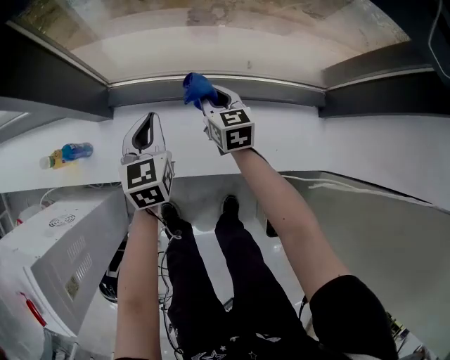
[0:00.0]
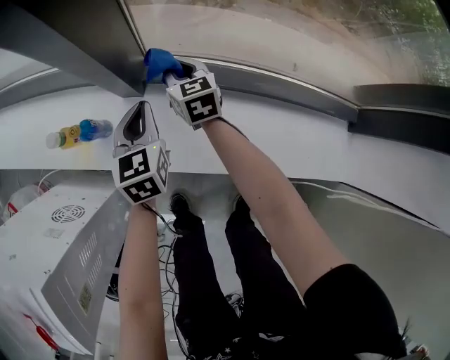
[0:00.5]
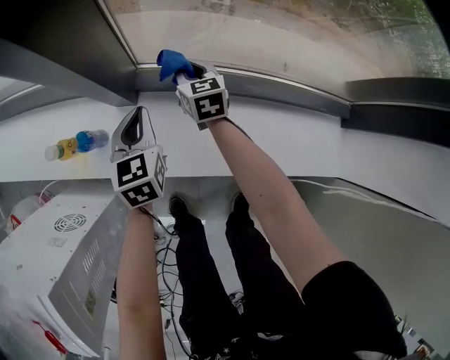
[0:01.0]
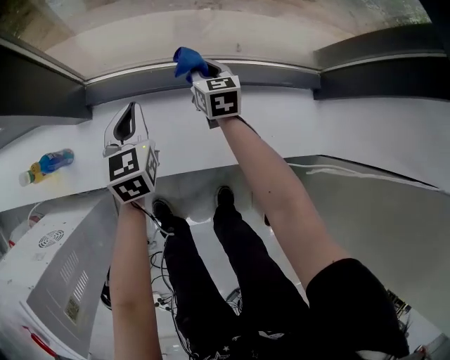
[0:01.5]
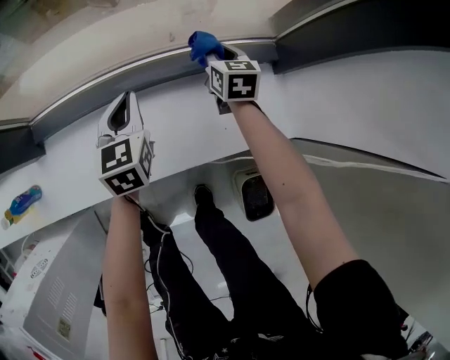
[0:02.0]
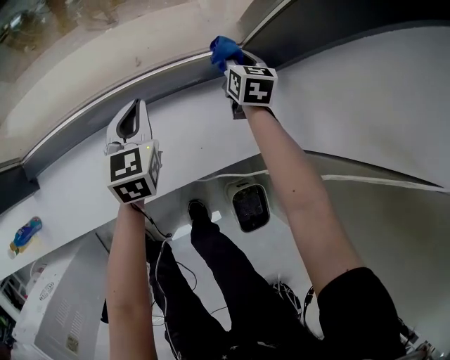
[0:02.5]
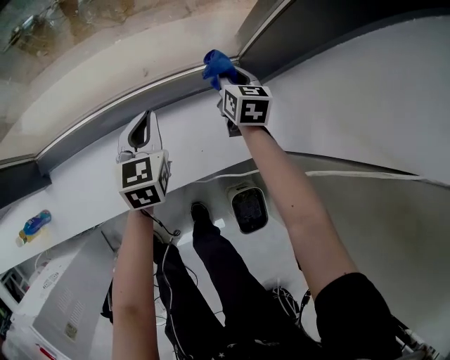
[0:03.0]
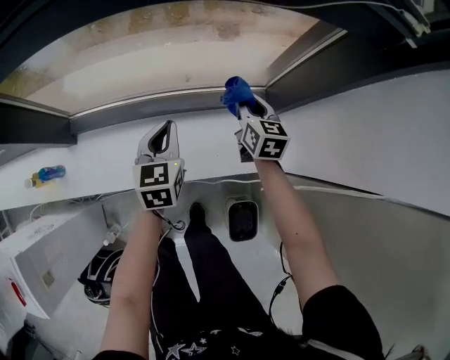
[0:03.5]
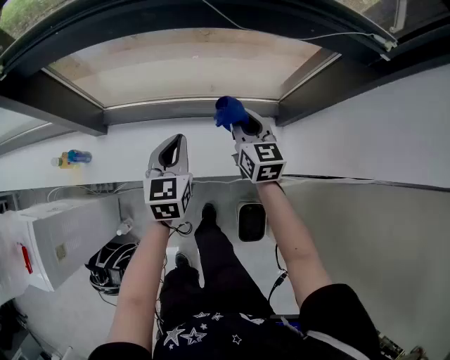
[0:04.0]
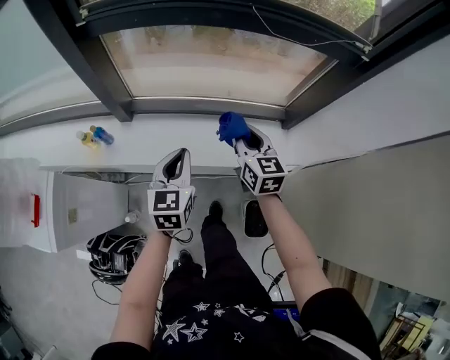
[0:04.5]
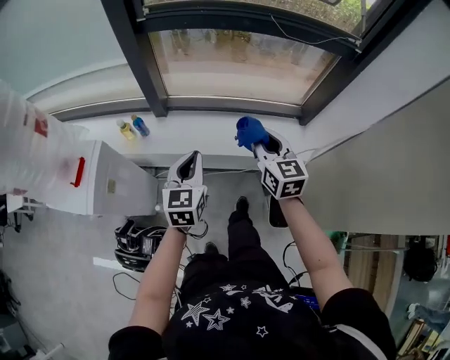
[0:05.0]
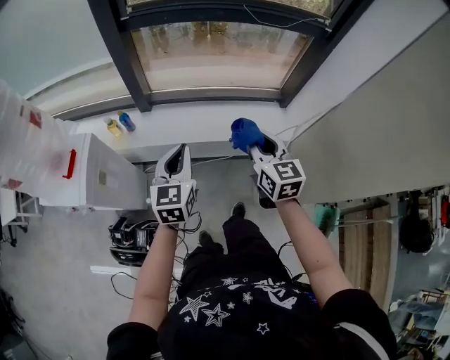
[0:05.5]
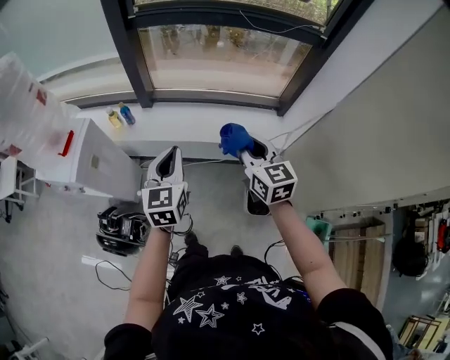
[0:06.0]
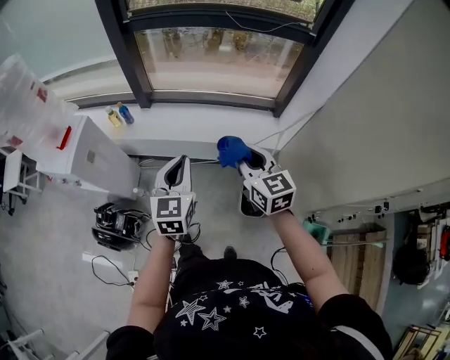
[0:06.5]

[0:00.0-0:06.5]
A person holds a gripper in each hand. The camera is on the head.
0:00.0 to 0:02.0: The right gripper changes place by about 30 cm, and turns by roughly 20 degrees. The left gripper shifts by approximately 20 cm.
0:02.0 to 0:04.5: Both grippers move upward and backward, some 40 cm. The right gripper changes its angle by some 20 degrees.
0:04.5 to 0:06.5: Both grippers move backward, some 30 cm.

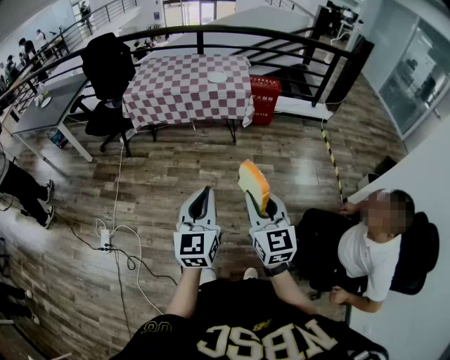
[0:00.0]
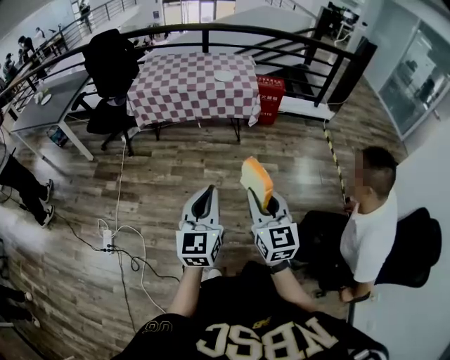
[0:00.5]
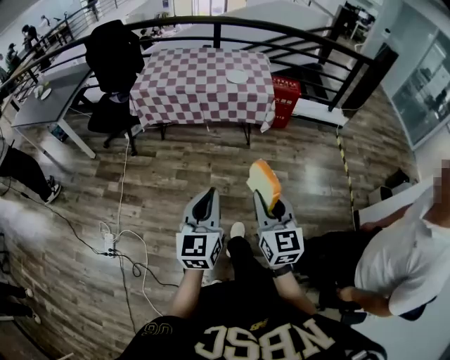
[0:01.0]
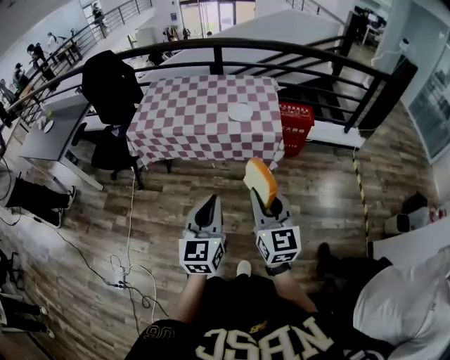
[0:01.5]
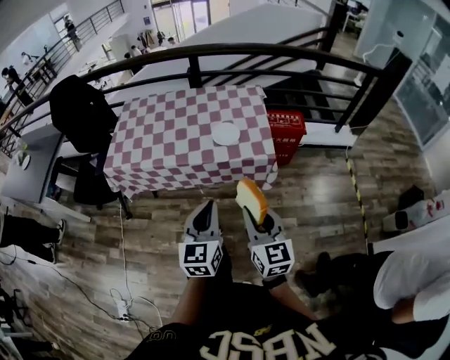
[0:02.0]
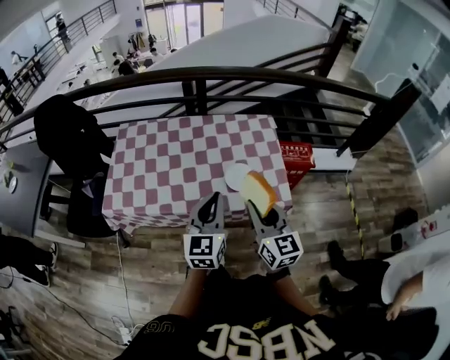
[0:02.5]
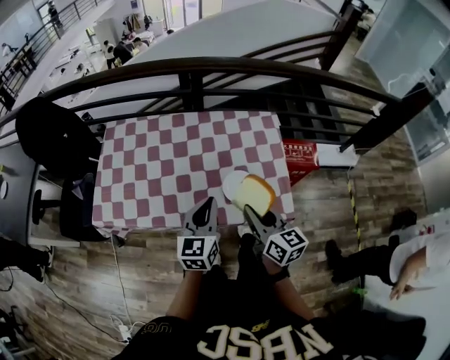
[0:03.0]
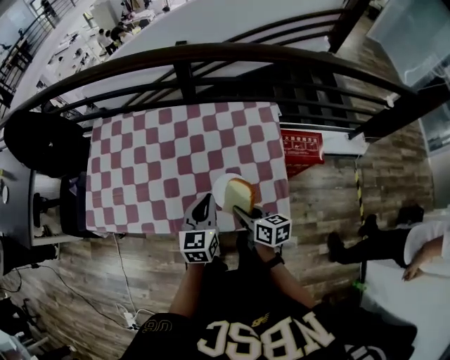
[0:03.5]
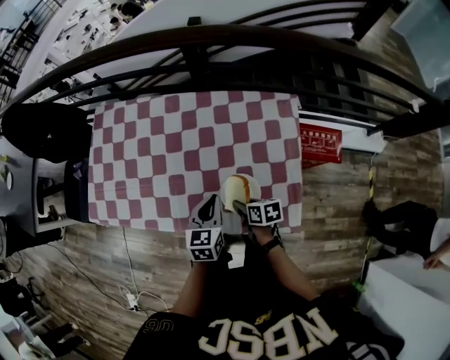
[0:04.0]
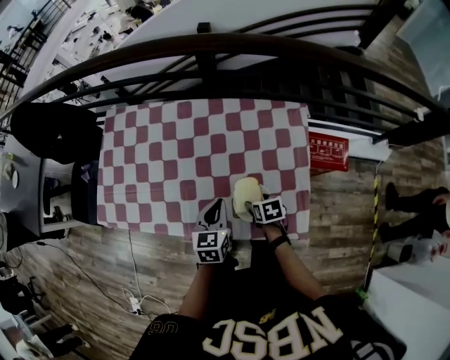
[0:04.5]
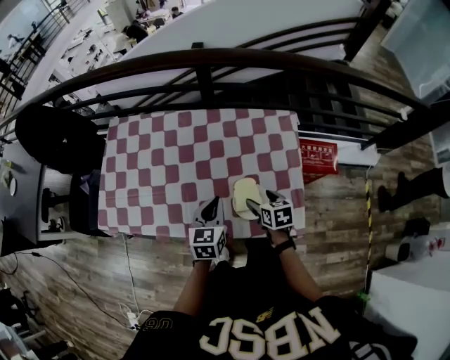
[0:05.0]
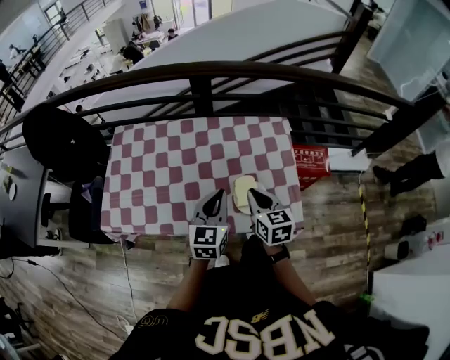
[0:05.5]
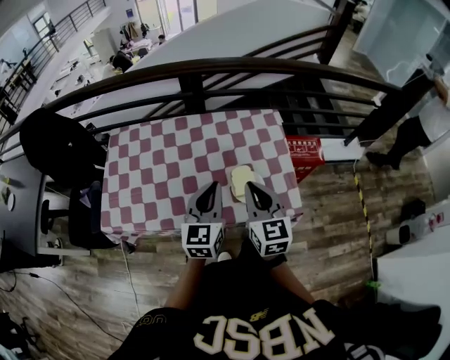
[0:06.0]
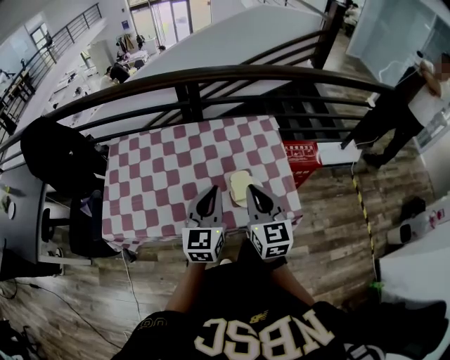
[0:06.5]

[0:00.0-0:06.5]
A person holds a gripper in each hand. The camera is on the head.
0:00.0 to 0:02.0: The two grippers travel together, forward, approximately 60 cm.
0:02.0 to 0:04.5: The pair of grippers is taken about 40 cm. The left gripper changes its angle by about 30 degrees, while the right gripper tilts its fingers some 50 degrees downward, and opens up.
0:04.5 to 0:06.5: The right gripper heads upward, covering roughly 35 cm, tilts its fingers about 50 degrees upward, and closes up, while the left gripper goes approximately 20 cm upward, and rotates roughly 30 degrees.

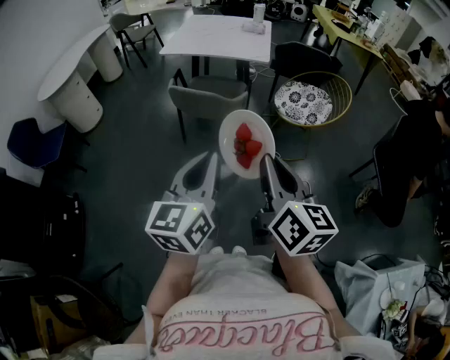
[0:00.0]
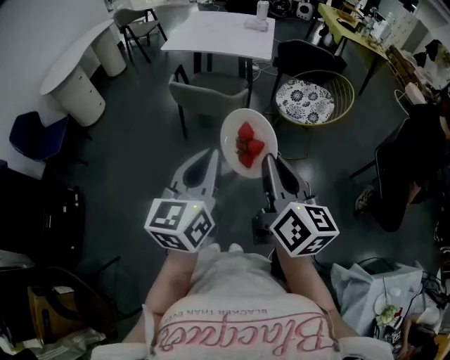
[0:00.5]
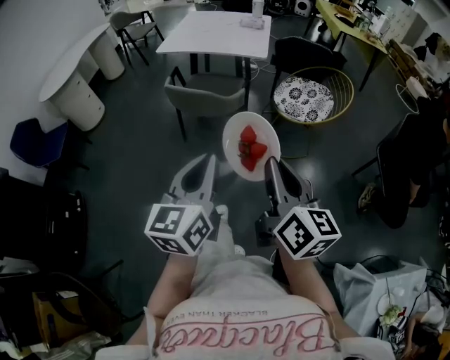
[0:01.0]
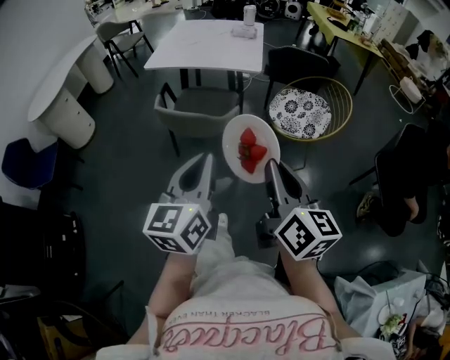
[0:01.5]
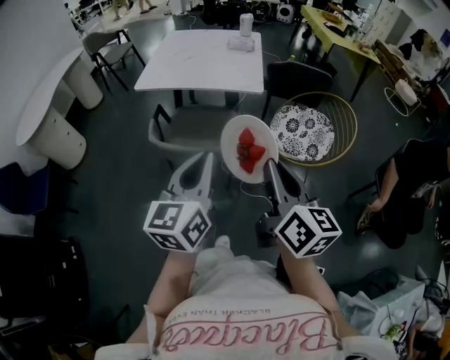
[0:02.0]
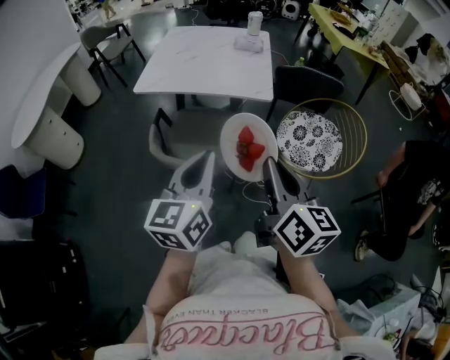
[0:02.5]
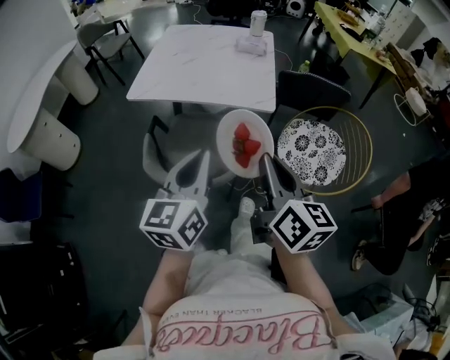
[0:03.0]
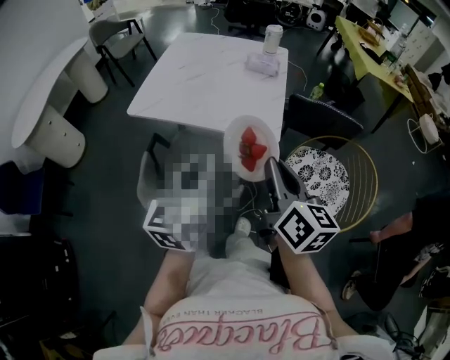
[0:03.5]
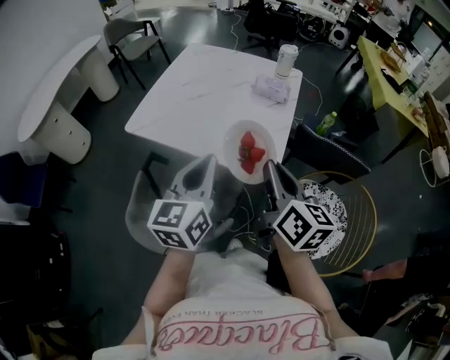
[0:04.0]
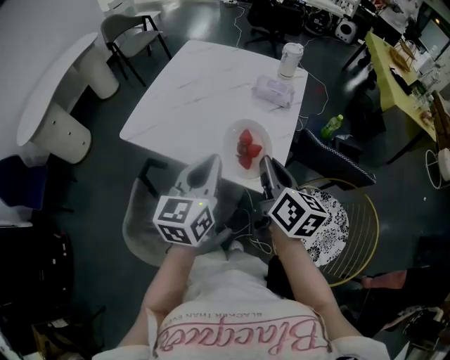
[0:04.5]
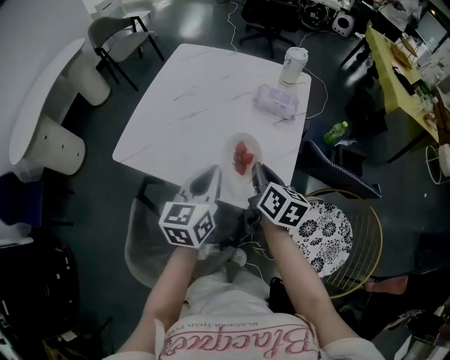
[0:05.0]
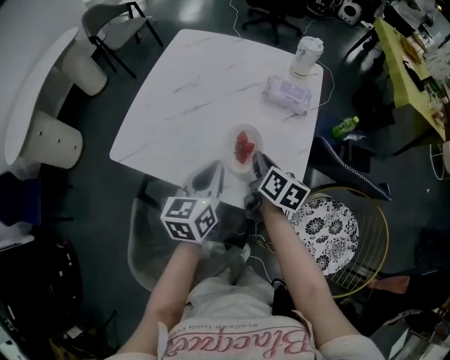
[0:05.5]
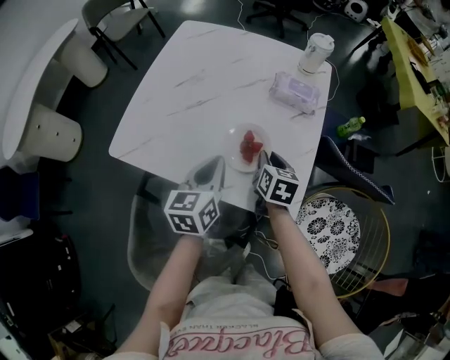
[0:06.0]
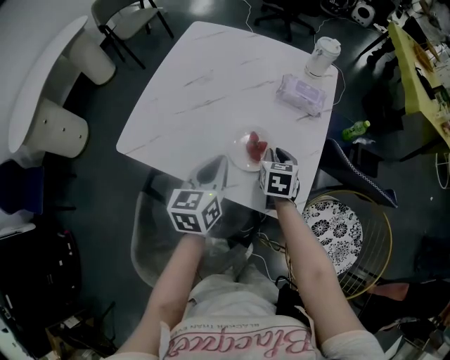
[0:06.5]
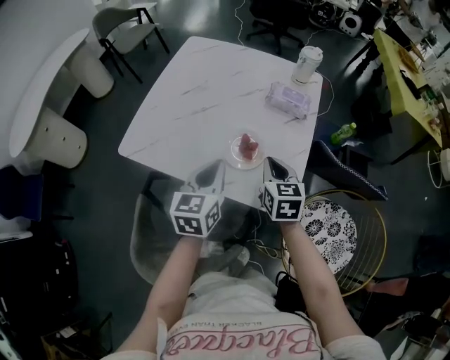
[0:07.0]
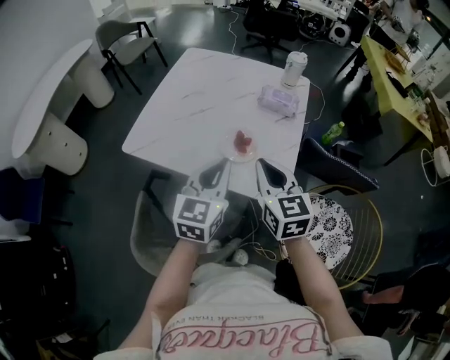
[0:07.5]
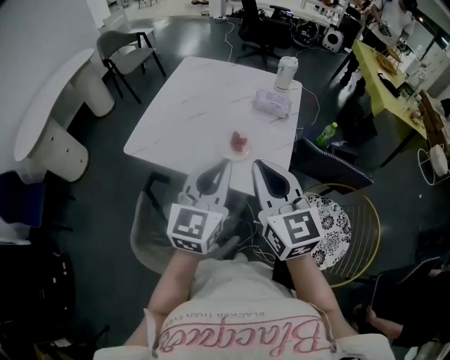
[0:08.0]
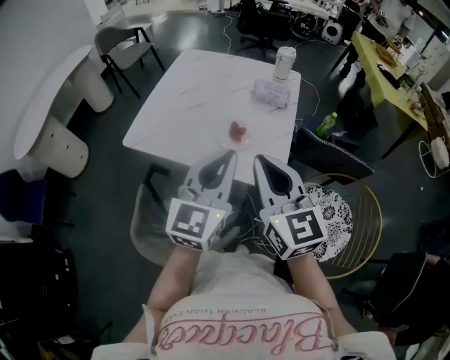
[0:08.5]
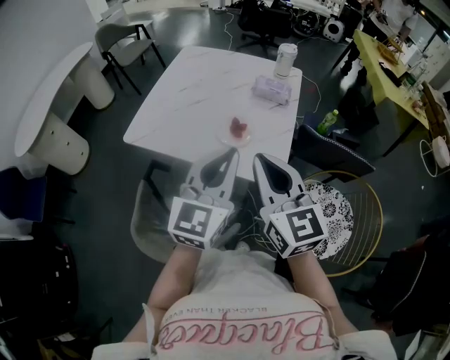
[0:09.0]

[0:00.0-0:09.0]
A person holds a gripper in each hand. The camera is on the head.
0:00.0 to 0:02.0: Both grippers move forward, roughly 30 cm.
0:02.0 to 0:04.5: The pair of grippers is taken forward, some 60 cm.
0:04.5 to 0:07.0: The left gripper goes about 15 cm forward, downward and to the left. Meanwhile the right gripper goes some 20 cm downward and forward, and changes its angle by some 40 degrees.
0:07.0 to 0:09.0: The left gripper goes approximately 25 cm upward, backward and to the right, and turns by some 30 degrees. The right gripper travels upward and backward by roughly 30 cm, and changes its angle by about 30 degrees.

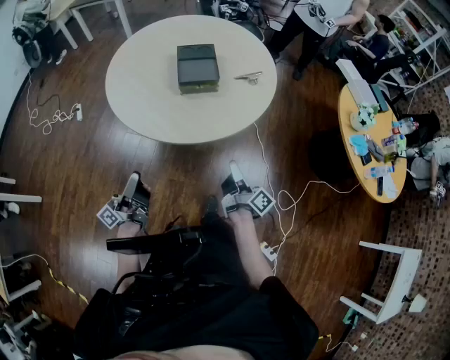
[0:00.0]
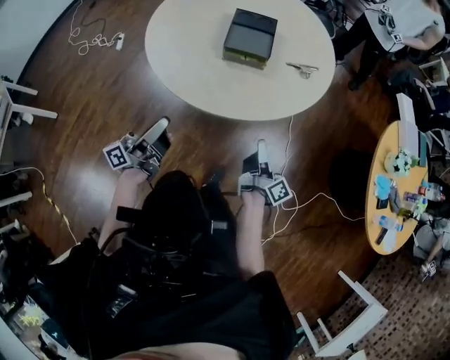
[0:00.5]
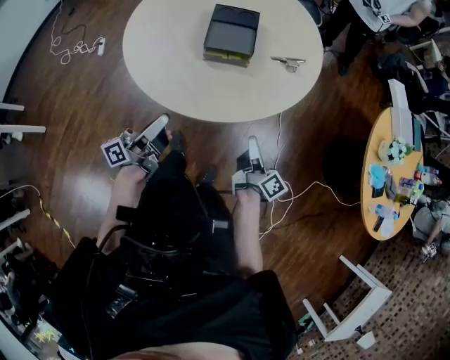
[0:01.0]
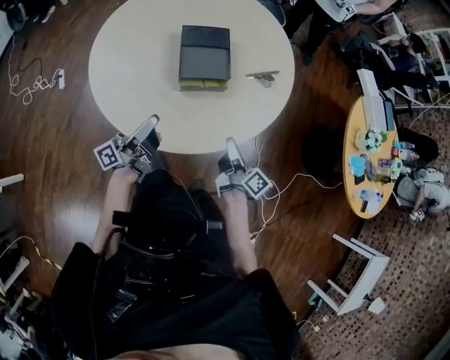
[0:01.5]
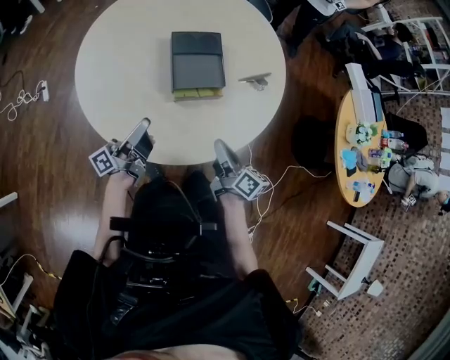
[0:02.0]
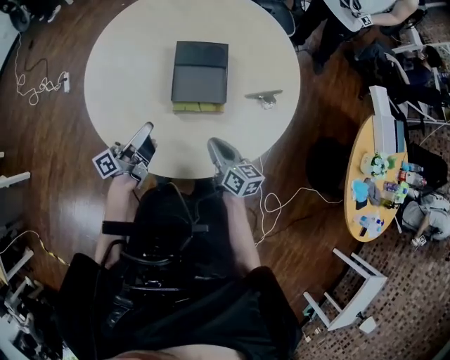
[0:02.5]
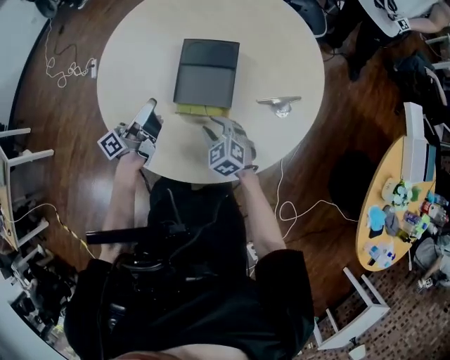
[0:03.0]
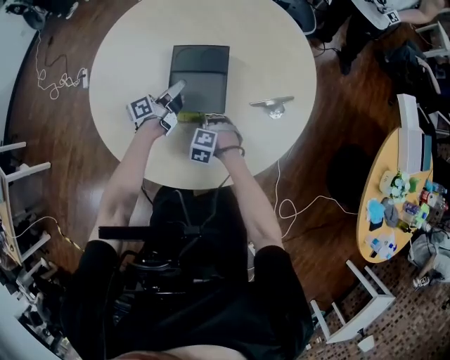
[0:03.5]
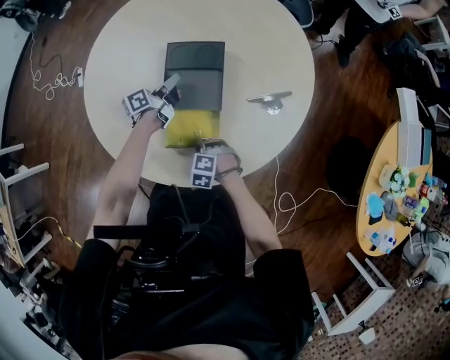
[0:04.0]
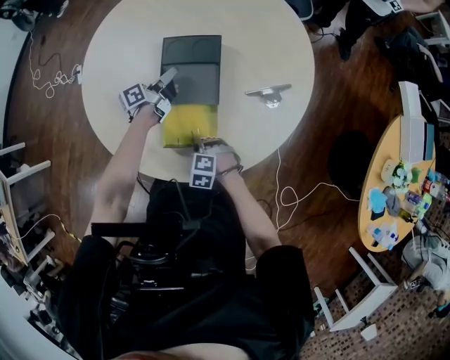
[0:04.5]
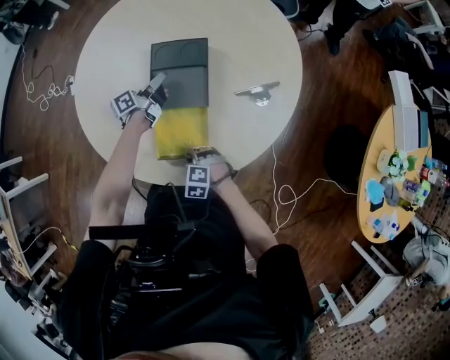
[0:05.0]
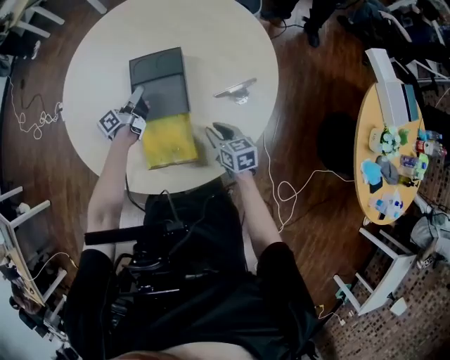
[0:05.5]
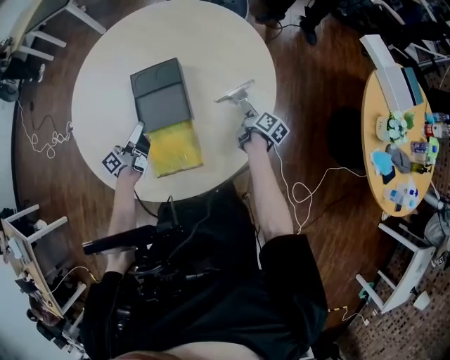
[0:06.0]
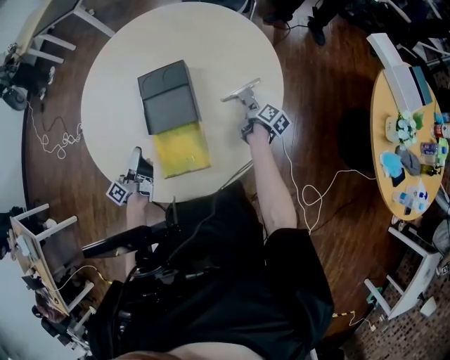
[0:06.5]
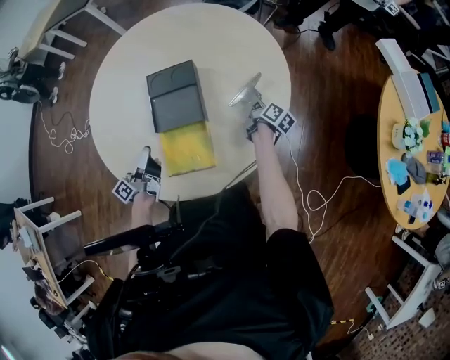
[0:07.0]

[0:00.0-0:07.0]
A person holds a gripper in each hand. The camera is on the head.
0:00.0 to 0:02.0: The right gripper ends up approximately 25 cm from where it was, and turns by roughly 30 degrees.
0:02.0 to 0:03.5: The right gripper shifts some 20 cm downward, twists roughly 100 degrees counterclockwise, seen from behind, and opens and closes again.
0:03.5 to 0:05.0: The right gripper shifts by roughly 15 cm.
0:05.0 to 0:07.0: The right gripper shifts by roughly 40 cm, and twists roughly 120 degrees clockwise, seen from behind.
